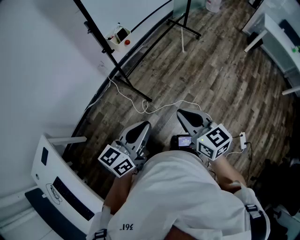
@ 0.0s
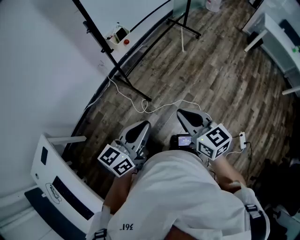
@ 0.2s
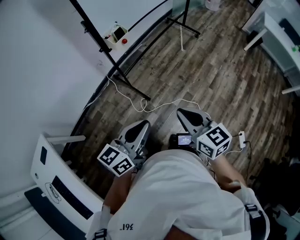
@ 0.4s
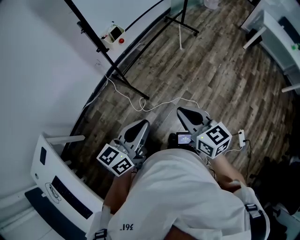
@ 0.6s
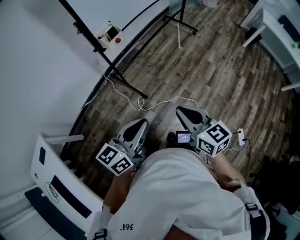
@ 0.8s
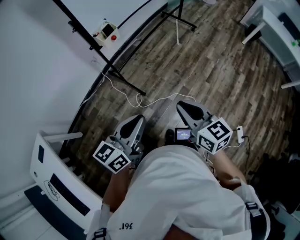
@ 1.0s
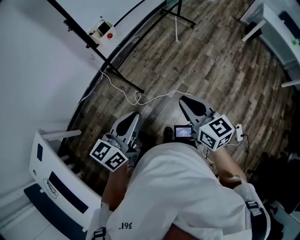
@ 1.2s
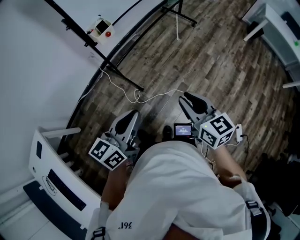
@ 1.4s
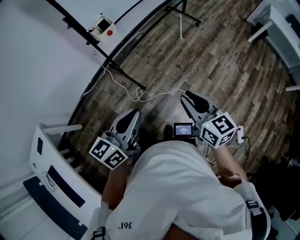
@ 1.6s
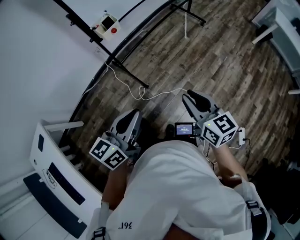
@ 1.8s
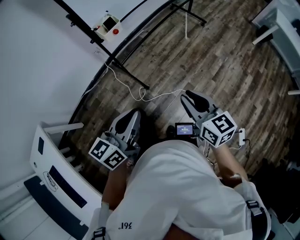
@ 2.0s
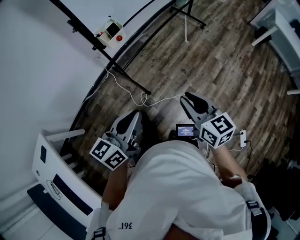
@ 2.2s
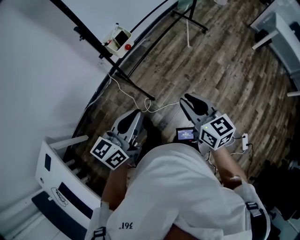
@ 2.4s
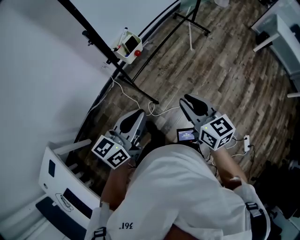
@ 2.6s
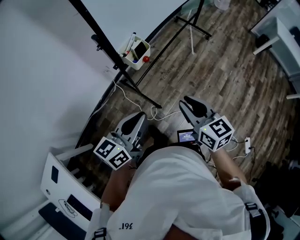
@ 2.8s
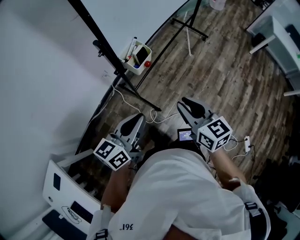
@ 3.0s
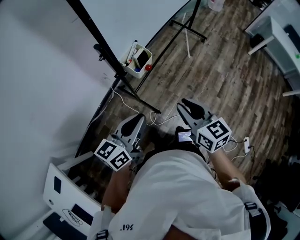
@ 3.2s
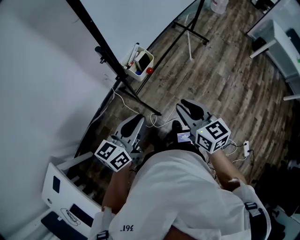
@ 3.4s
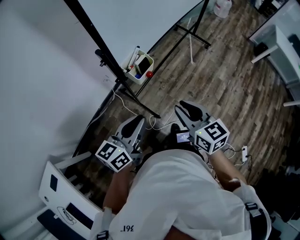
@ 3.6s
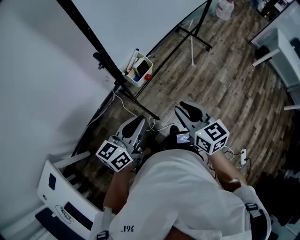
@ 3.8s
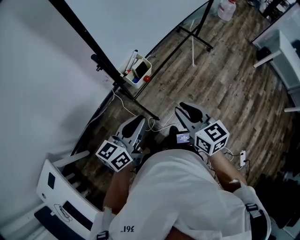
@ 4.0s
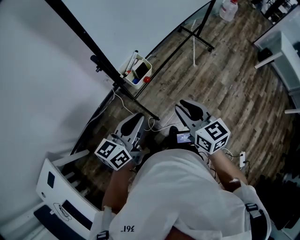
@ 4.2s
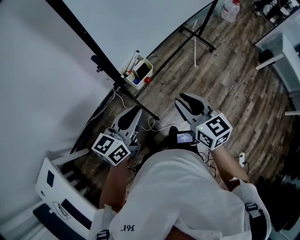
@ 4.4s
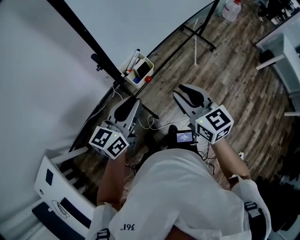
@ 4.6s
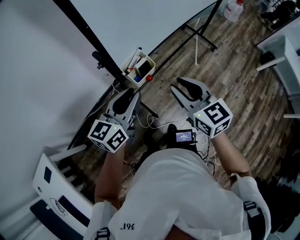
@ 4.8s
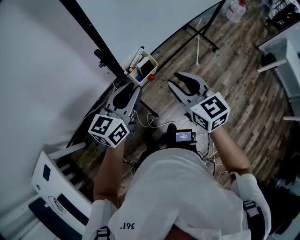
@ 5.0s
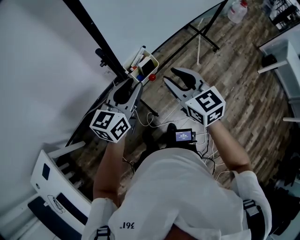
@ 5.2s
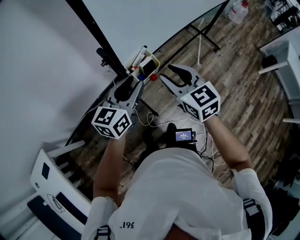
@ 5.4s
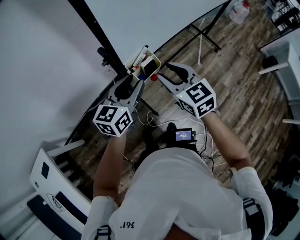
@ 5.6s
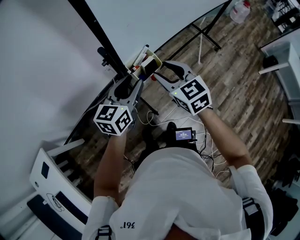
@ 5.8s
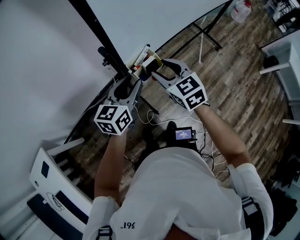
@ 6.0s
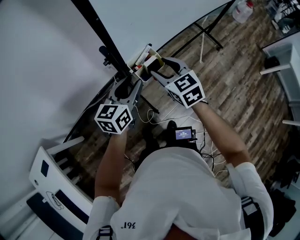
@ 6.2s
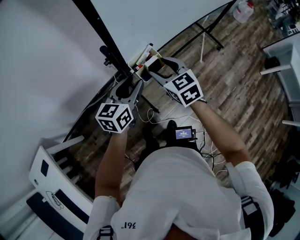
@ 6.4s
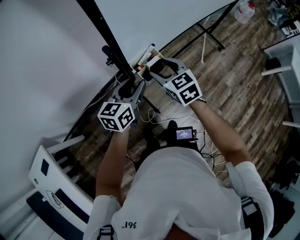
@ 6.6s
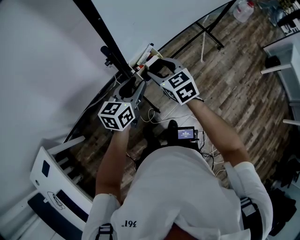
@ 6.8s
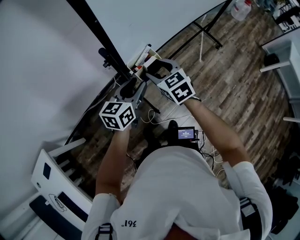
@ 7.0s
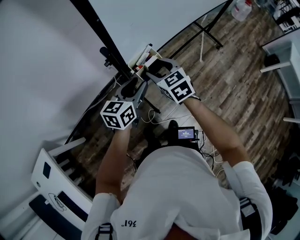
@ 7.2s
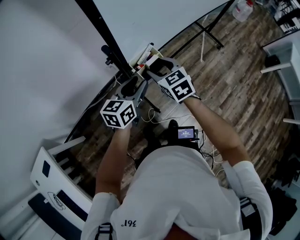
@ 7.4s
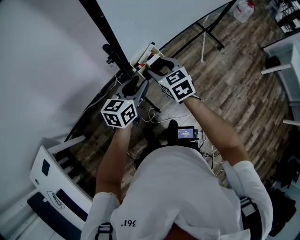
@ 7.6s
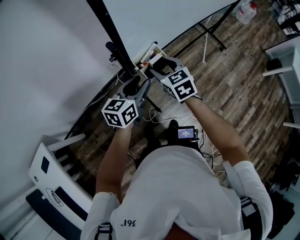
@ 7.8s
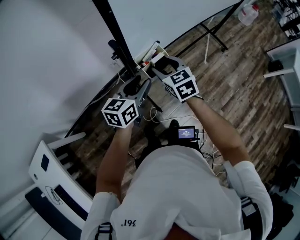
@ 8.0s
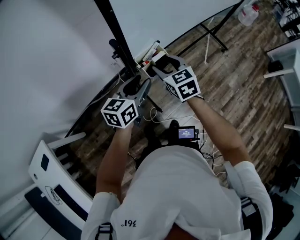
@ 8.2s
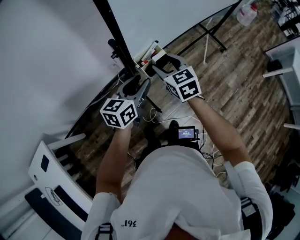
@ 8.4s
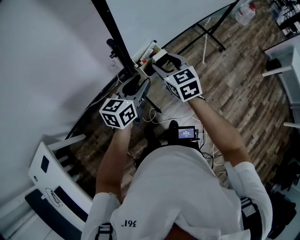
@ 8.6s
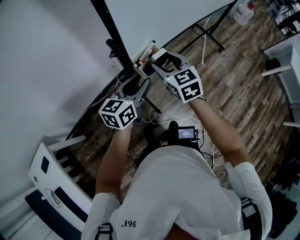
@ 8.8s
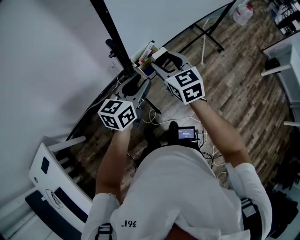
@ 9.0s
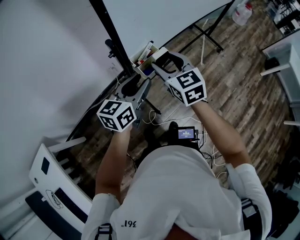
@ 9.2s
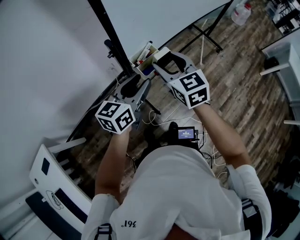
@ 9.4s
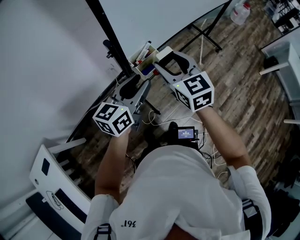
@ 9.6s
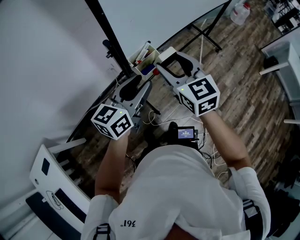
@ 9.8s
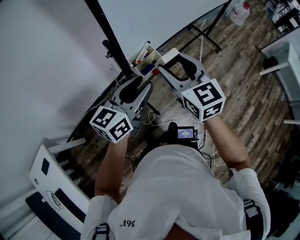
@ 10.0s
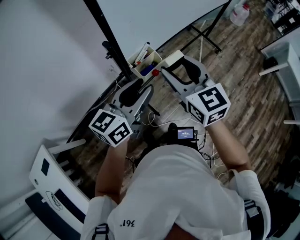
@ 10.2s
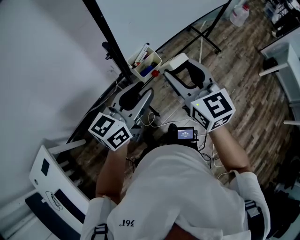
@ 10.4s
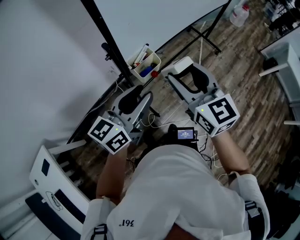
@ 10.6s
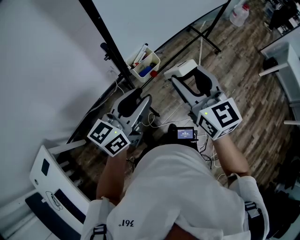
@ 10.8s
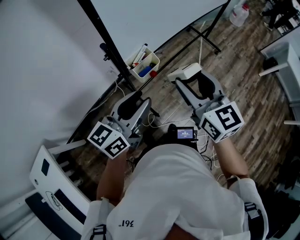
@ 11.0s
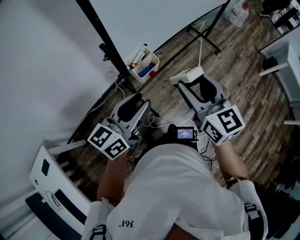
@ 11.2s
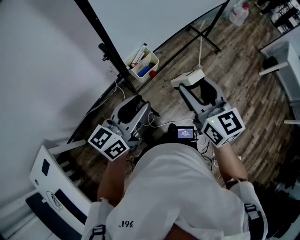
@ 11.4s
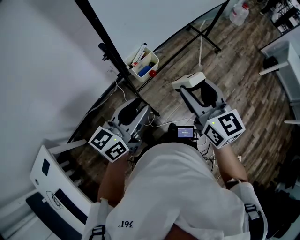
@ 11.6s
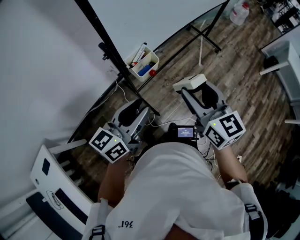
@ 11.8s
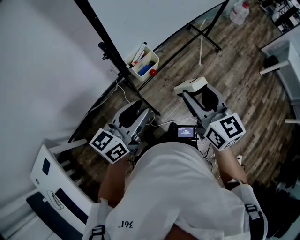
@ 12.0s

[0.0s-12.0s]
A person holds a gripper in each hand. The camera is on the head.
0.0s to 1.6s: The right gripper moves to the right, roughly 10 cm. The left gripper shifts about 5 cm to the right.
1.6s to 3.0s: The left gripper moves forward and to the left, approximately 30 cm. The right gripper is displaced to the left and forward by about 30 cm.
3.0s to 4.4s: The grippers both shift forward by roughly 10 cm.
4.4s to 6.0s: The left gripper is displaced forward by about 10 cm, and opens, while the right gripper shifts roughly 15 cm forward and to the left, rotates about 20 degrees, and opens its fingers.
6.0s to 7.6s: The right gripper is displaced downward by approximately 5 cm.
7.6s to 9.0s: The left gripper heads upward, covering approximately 5 cm. Meanwhile the right gripper shifts approximately 10 cm upward.
9.0s to 10.4s: The right gripper is displaced upward, backward and to the right by about 15 cm, while the left gripper shifts some 10 cm upward and backward.
10.4s to 12.0s: The left gripper travels backward by approximately 5 cm; the right gripper goes approximately 10 cm to the right and backward.

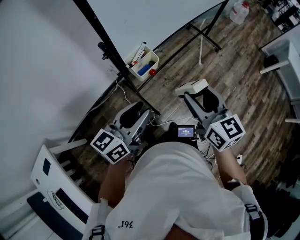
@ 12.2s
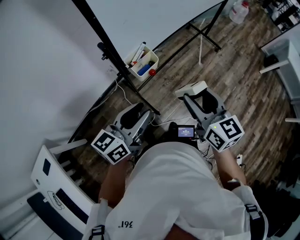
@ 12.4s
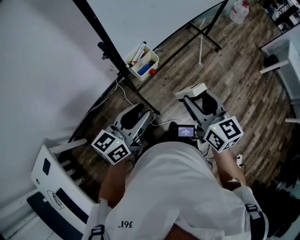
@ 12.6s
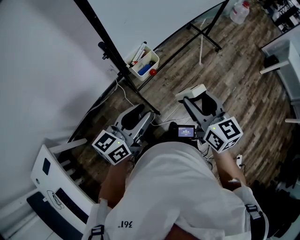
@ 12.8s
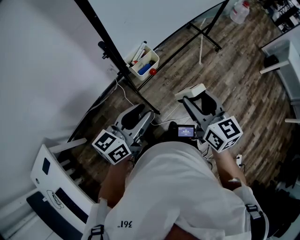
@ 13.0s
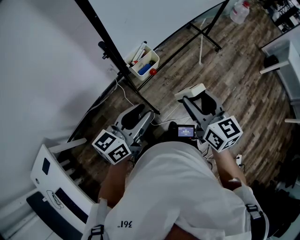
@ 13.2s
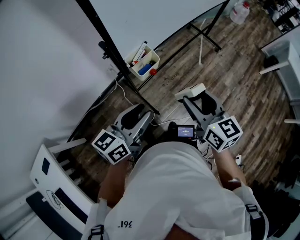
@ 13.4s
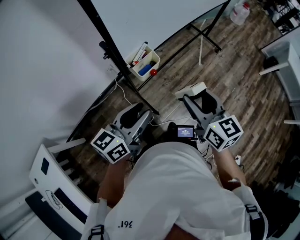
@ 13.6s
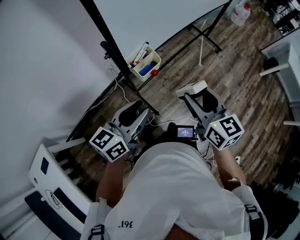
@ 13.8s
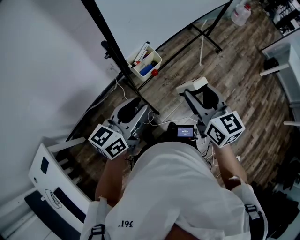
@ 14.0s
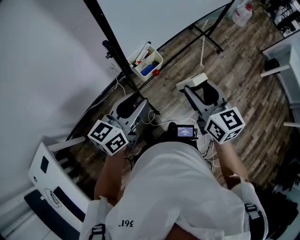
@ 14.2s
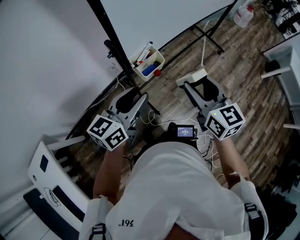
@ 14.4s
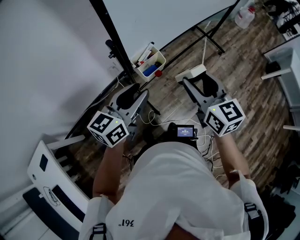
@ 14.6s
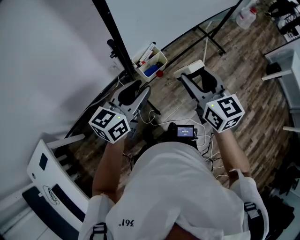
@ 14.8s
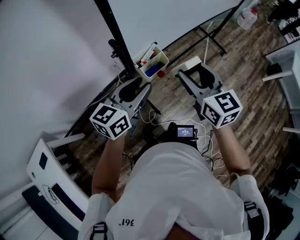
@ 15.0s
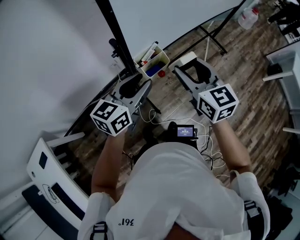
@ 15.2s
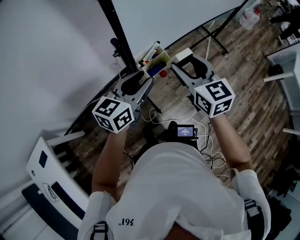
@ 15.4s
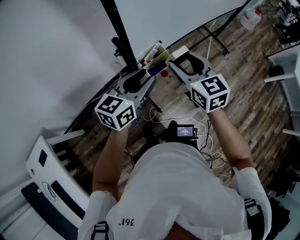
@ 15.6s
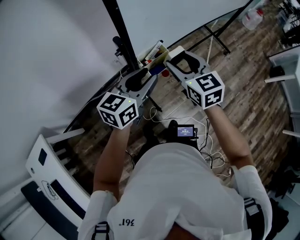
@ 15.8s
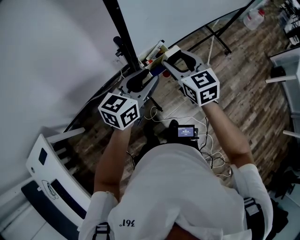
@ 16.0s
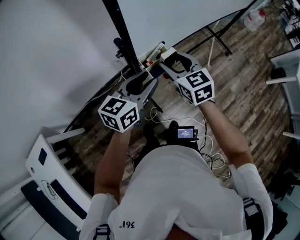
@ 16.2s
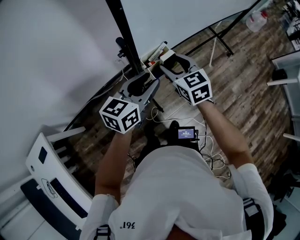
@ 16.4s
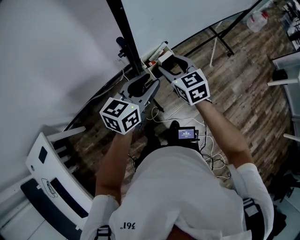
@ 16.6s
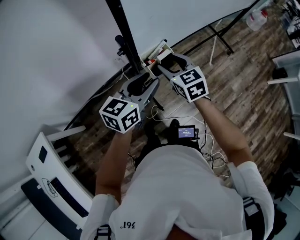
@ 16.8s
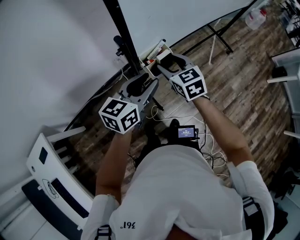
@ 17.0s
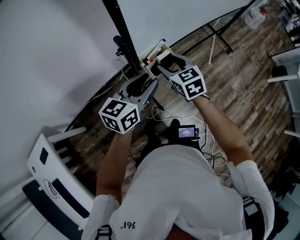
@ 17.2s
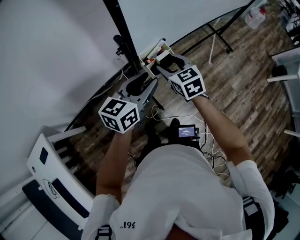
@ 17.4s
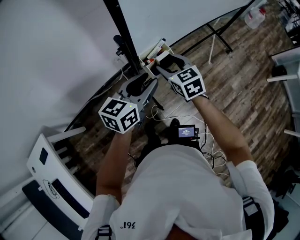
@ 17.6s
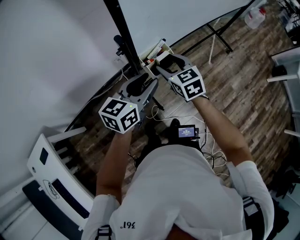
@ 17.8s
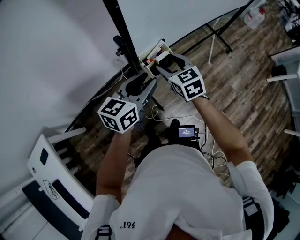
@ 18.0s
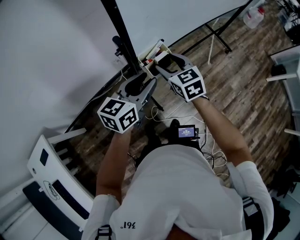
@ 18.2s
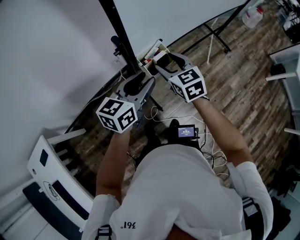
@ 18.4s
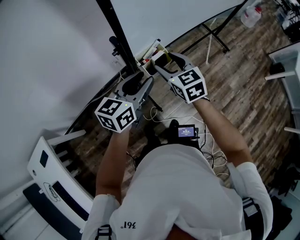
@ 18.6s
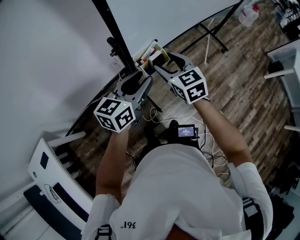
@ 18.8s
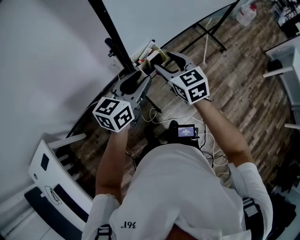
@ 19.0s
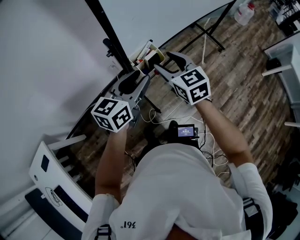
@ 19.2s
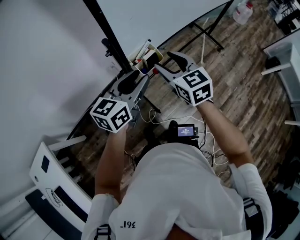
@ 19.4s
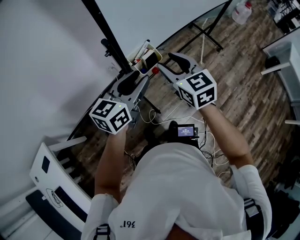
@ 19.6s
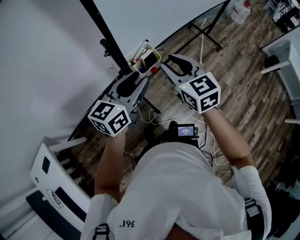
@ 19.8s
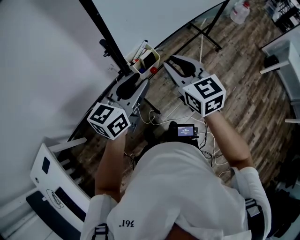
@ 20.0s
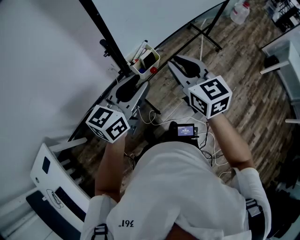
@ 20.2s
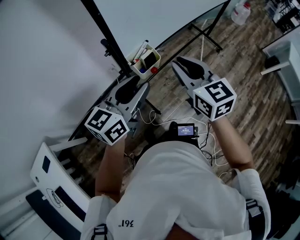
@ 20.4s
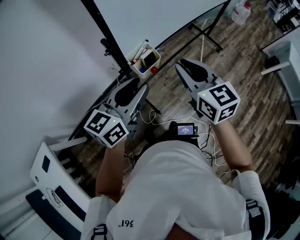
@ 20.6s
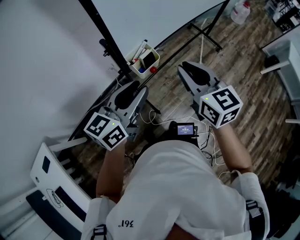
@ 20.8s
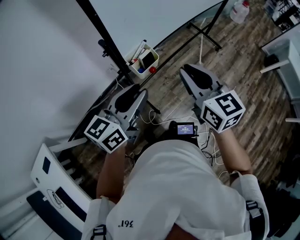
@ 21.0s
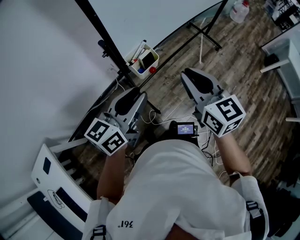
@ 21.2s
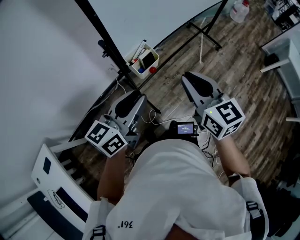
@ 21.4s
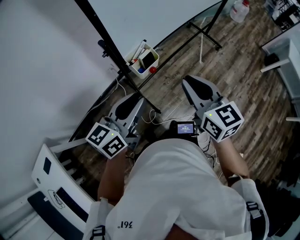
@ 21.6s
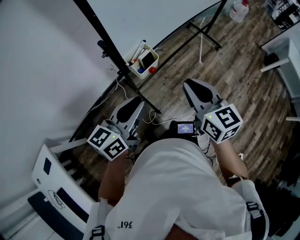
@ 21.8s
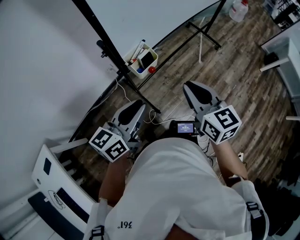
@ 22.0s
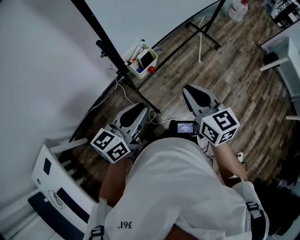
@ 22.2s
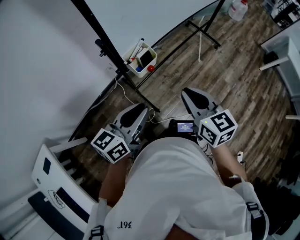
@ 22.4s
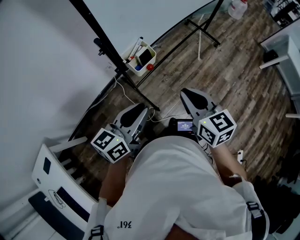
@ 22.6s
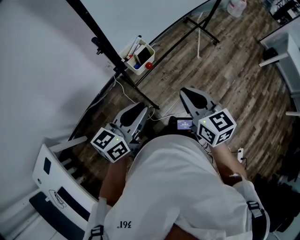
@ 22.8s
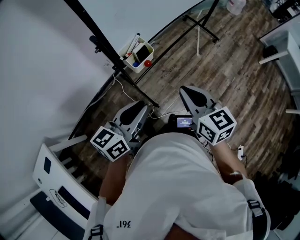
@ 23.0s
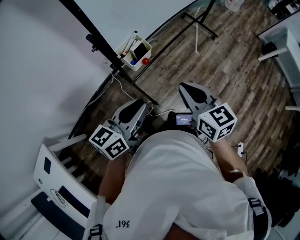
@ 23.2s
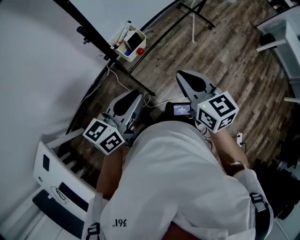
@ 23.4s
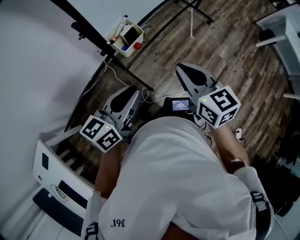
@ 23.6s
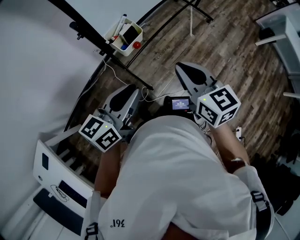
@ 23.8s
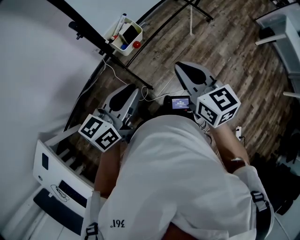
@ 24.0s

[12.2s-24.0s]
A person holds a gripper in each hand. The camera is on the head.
12.2s to 13.6s: The grippers stay close to where they were, moving slightly.
13.6s to 15.2s: The left gripper moves forward, about 10 cm, while the right gripper shifts approximately 15 cm forward and to the left.
15.2s to 16.6s: The right gripper heads downward and to the left, covering about 15 cm.
16.6s to 18.2s: The grippers stay close to where they were, moving slightly.
18.2s to 19.6s: The right gripper shifts approximately 10 cm upward and backward. The left gripper ends up roughly 5 cm from where it was.
19.6s to 21.0s: The right gripper is displaced to the right, backward and upward by approximately 10 cm, and closes up; the left gripper travels backward by approximately 5 cm.
21.0s to 22.6s: The right gripper shifts about 10 cm downward and backward, while the left gripper travels backward and downward by about 10 cm.
22.6s to 24.0s: The two grippers keep their place.
